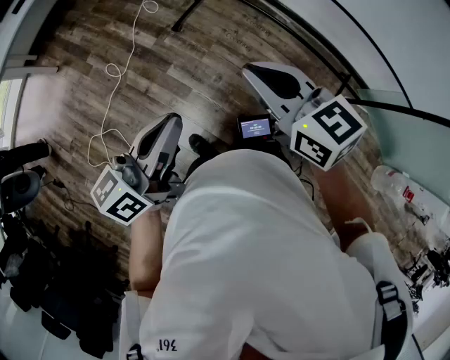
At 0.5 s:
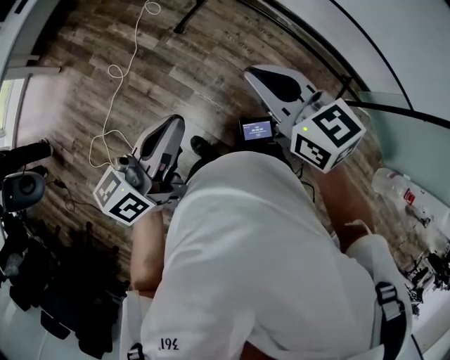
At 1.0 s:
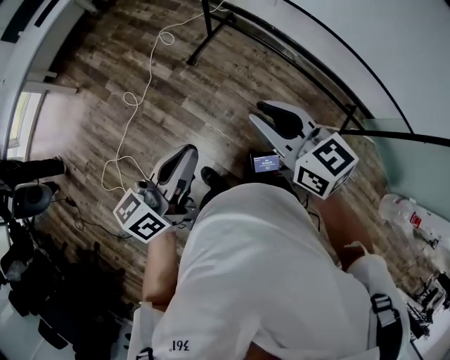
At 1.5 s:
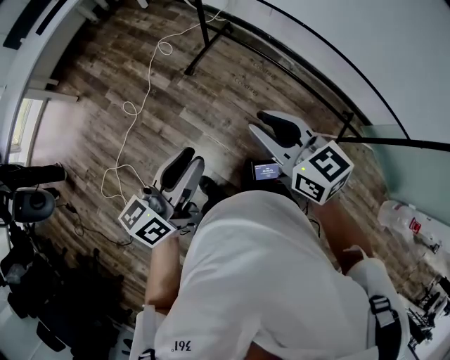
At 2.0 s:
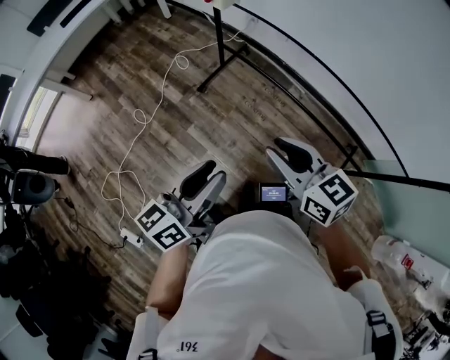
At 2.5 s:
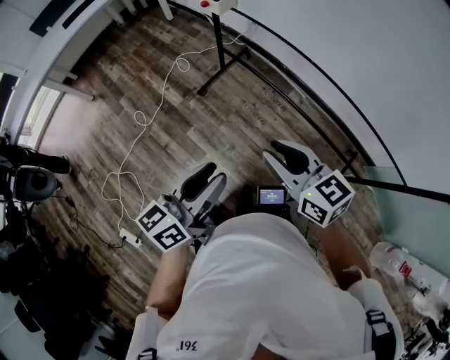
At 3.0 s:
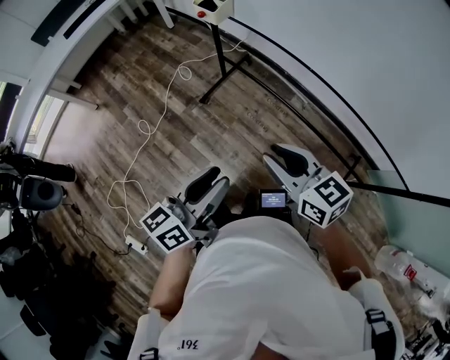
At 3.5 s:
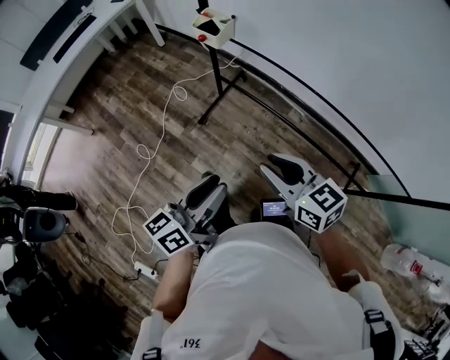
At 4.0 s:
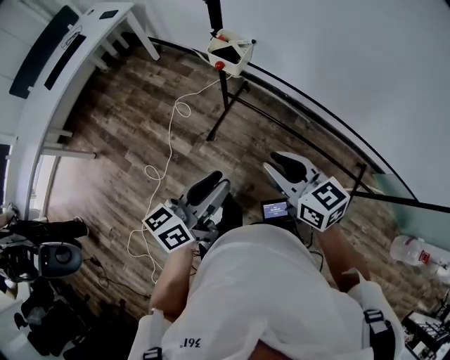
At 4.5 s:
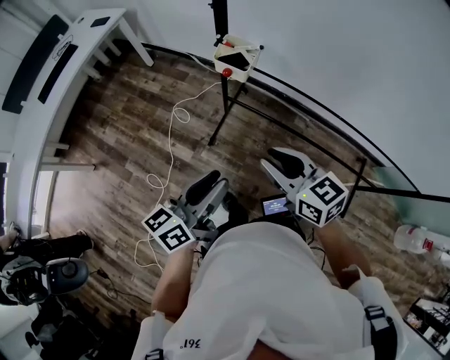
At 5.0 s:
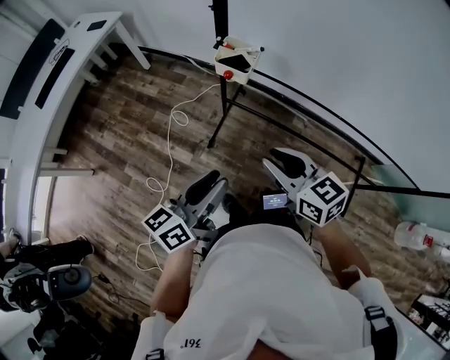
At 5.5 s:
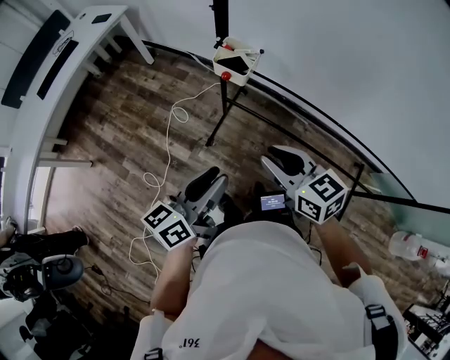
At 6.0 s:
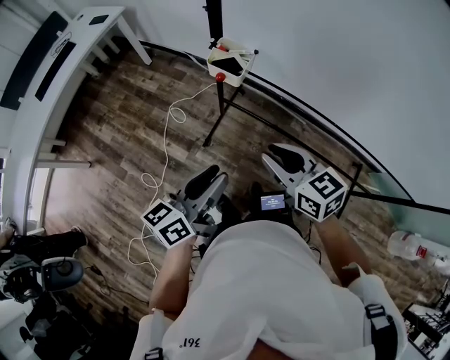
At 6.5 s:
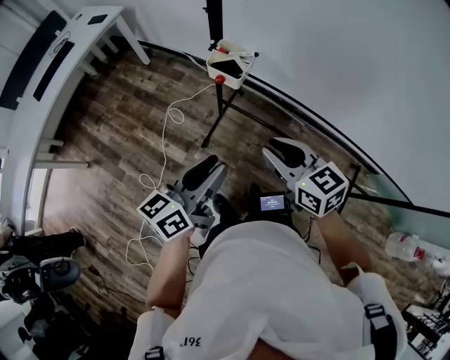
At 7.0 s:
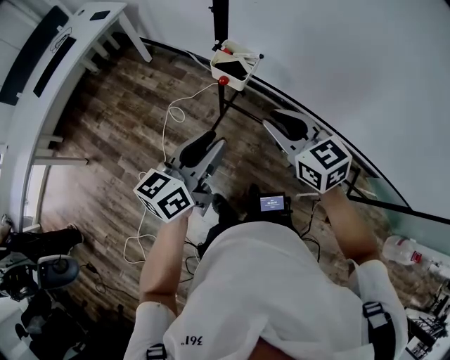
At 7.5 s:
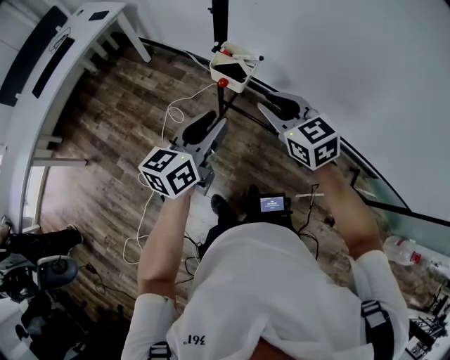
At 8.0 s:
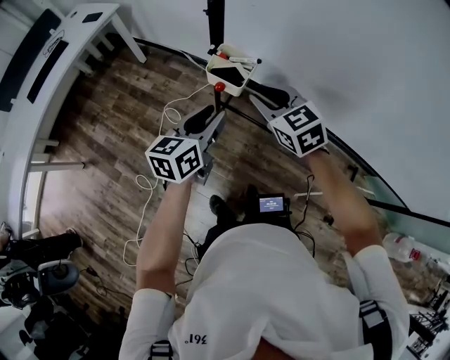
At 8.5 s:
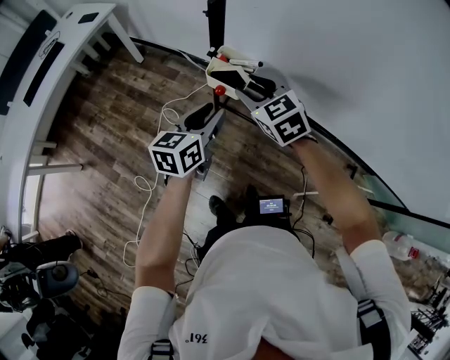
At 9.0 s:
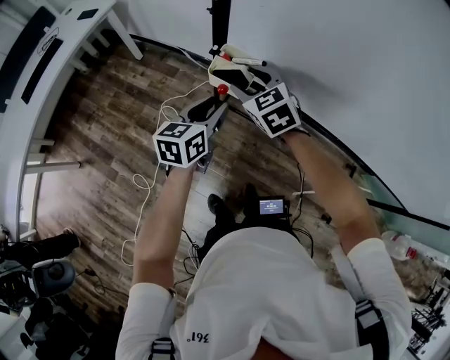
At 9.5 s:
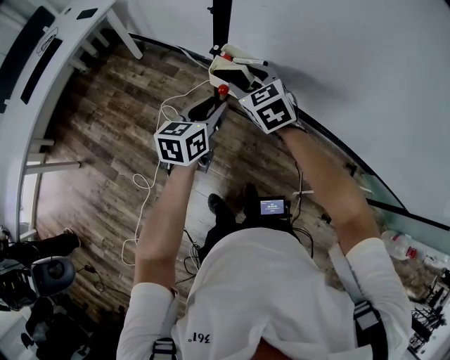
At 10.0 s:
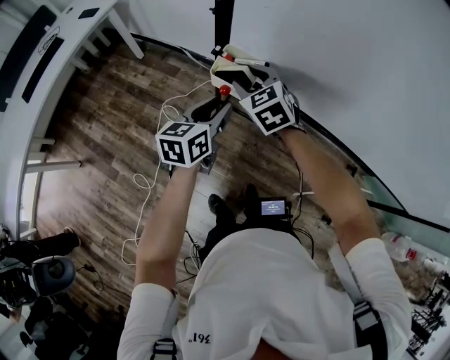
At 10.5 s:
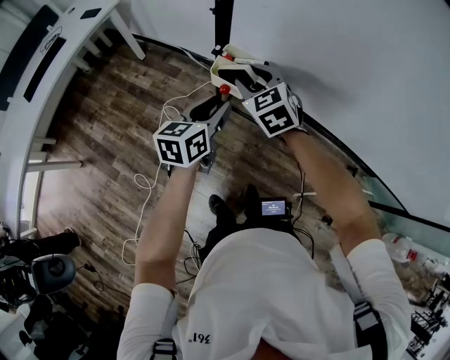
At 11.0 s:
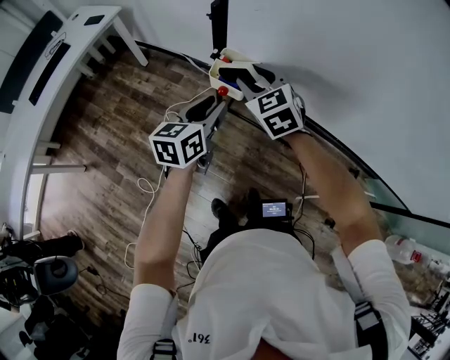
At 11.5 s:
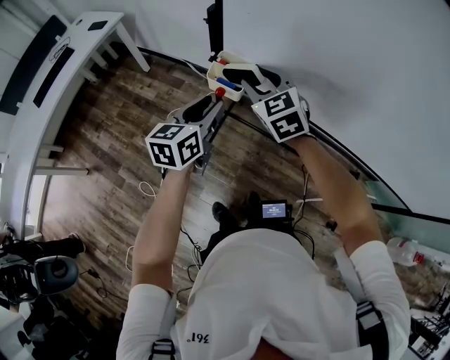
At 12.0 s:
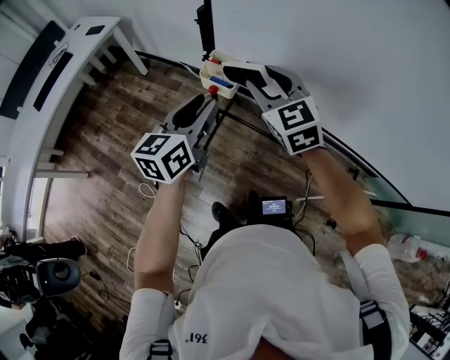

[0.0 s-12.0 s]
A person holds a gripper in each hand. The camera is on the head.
0.0 to 2.0 s: The grippers both shift to the right by approximately 10 cm. The left gripper opens.
2.0 to 4.0 s: The grippers both shift forward by approximately 25 cm.
4.0 to 6.0 s: The grippers both shift forward by approximately 5 cm.
6.0 to 8.0 s: The grippers both shift forward by some 20 cm. The right gripper swivels approximately 20 degrees.
8.0 to 10.0 s: The left gripper shifts by about 5 cm. Meanwhile the right gripper moves forward, roughly 5 cm, and opens.
10.0 to 12.0 s: The left gripper goes roughly 15 cm upward and backward, while the right gripper moves upward, backward and to the right, some 15 cm.

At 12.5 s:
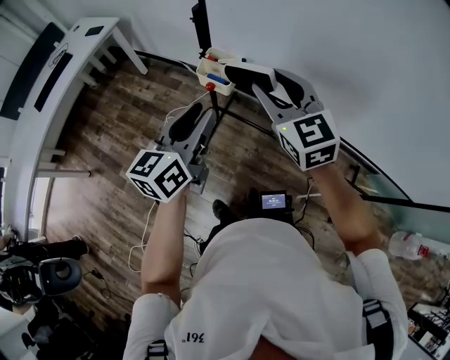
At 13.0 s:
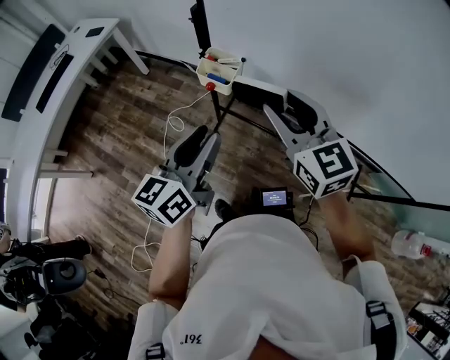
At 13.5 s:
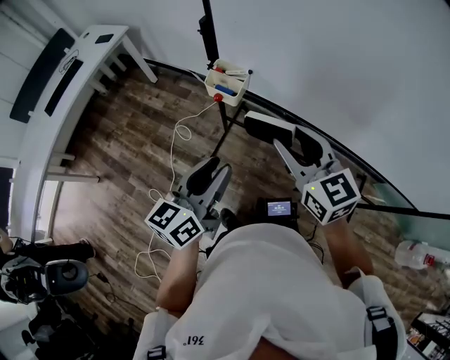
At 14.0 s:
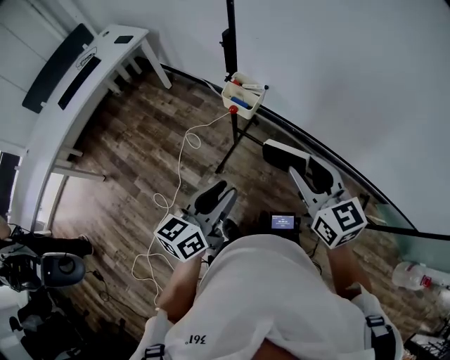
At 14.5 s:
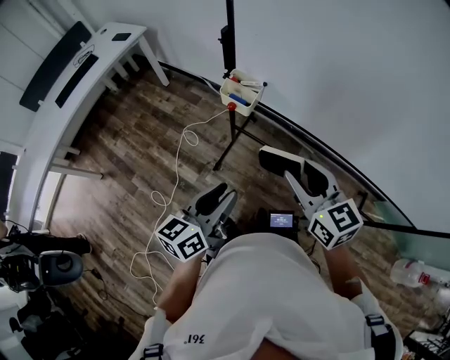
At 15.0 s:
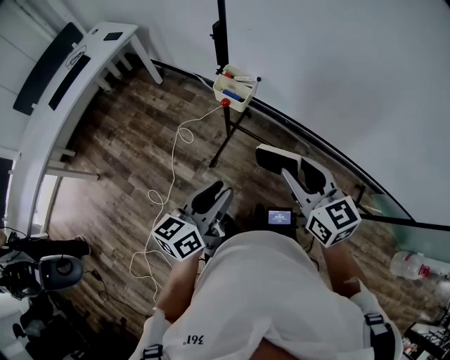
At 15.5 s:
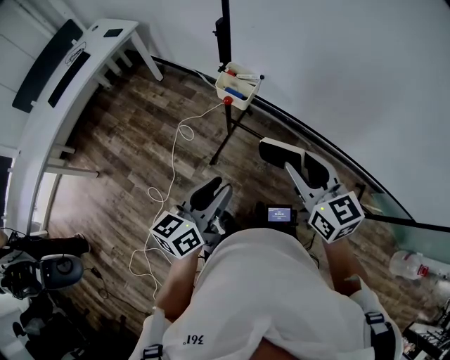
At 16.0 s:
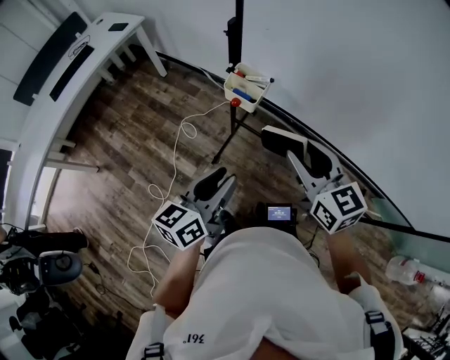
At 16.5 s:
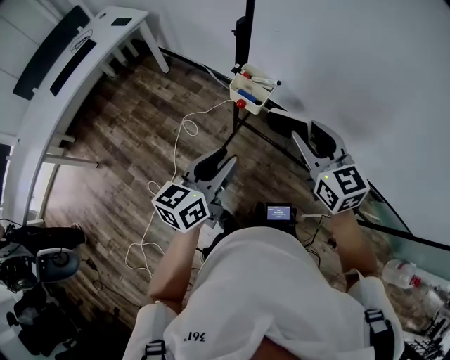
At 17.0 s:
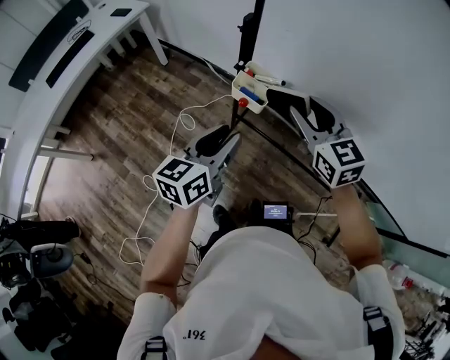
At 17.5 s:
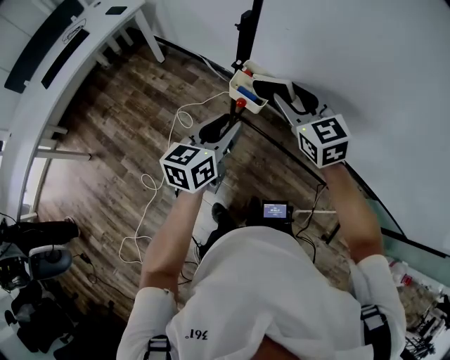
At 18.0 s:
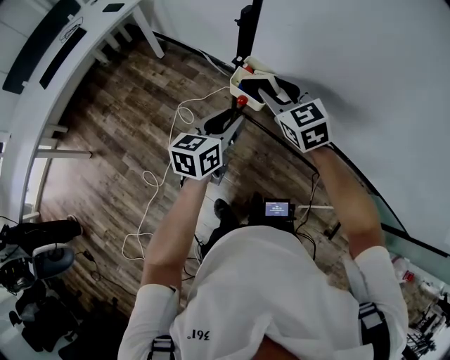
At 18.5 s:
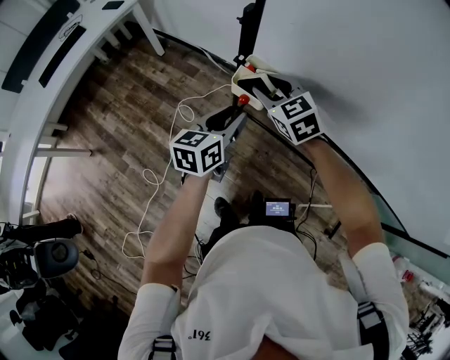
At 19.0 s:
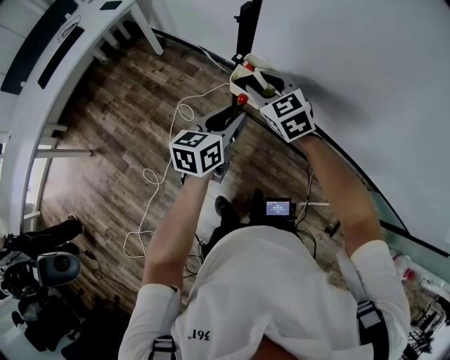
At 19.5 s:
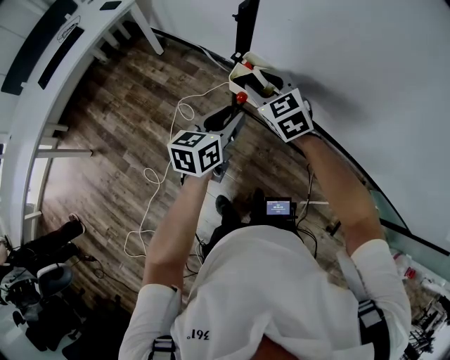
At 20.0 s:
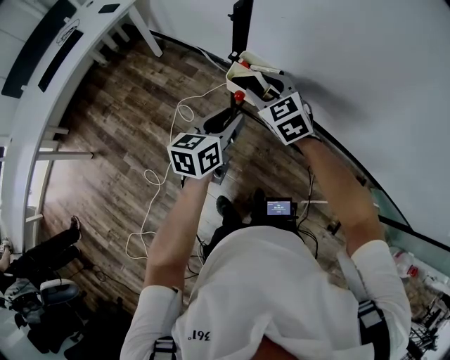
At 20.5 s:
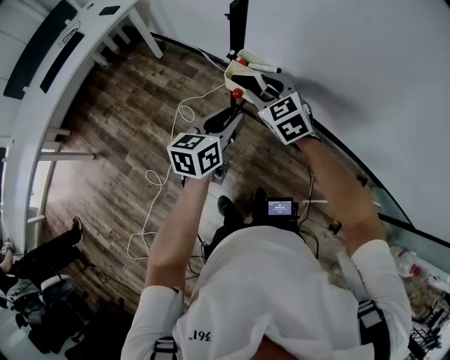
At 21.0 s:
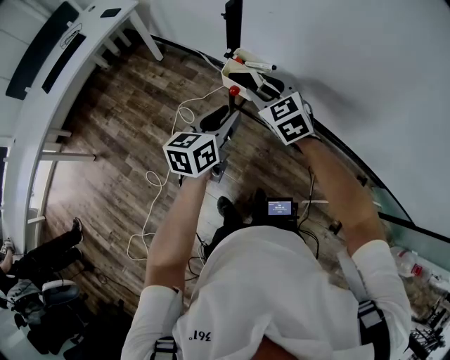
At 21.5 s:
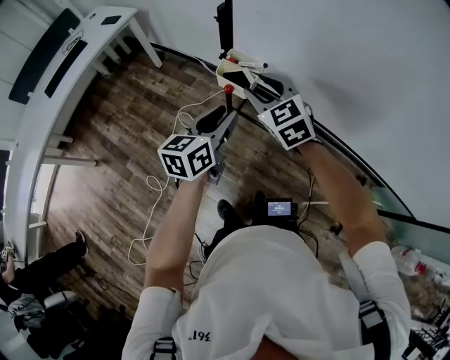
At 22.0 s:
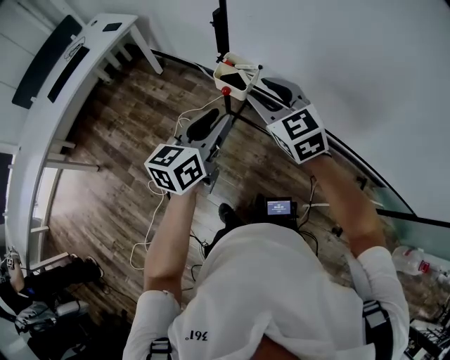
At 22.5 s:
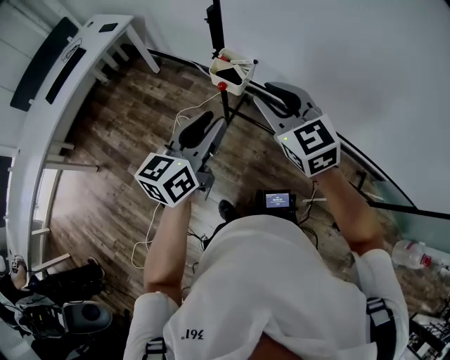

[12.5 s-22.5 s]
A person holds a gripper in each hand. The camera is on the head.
12.5 to 14.5 s: The left gripper heads backward and downward, covering about 15 cm. Meanwhile the right gripper travels backward by some 15 cm, and turns by about 20 degrees.
14.5 to 16.5 s: The grippers both shift forward by about 10 cm.
16.5 to 18.5 s: The right gripper goes some 20 cm forward, to the left and downward, and rotates about 20 degrees, while the left gripper travels forward and downward by approximately 15 cm.
18.5 to 20.5 s: The grippers stay close to where they were, moving slightly.
20.5 to 22.5 s: Both grippers move upward and backward, roughly 20 cm.

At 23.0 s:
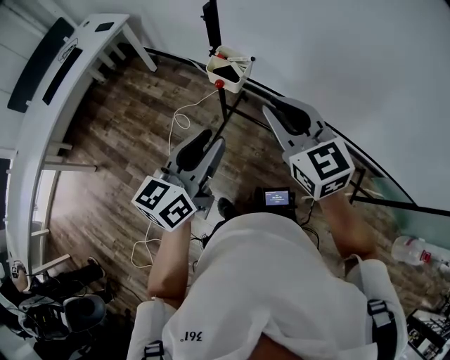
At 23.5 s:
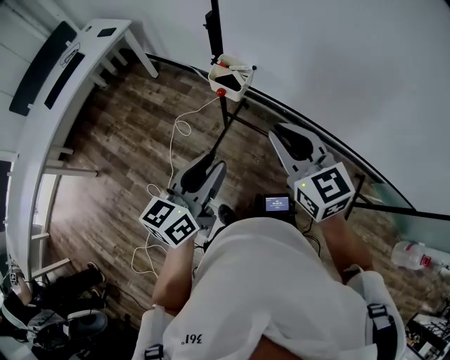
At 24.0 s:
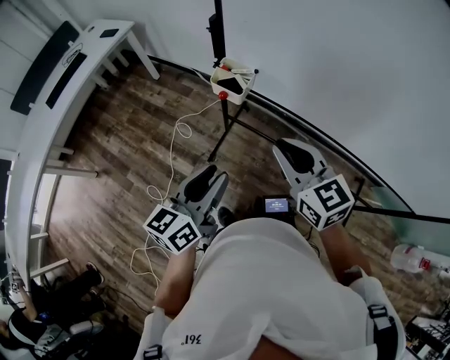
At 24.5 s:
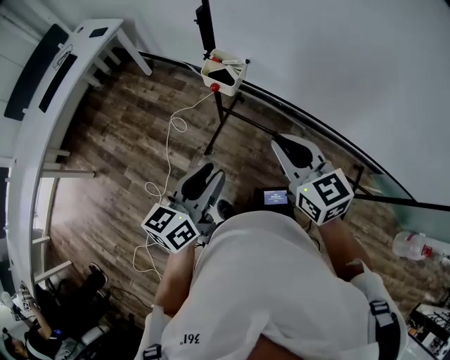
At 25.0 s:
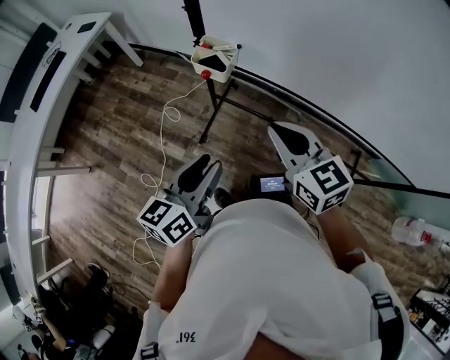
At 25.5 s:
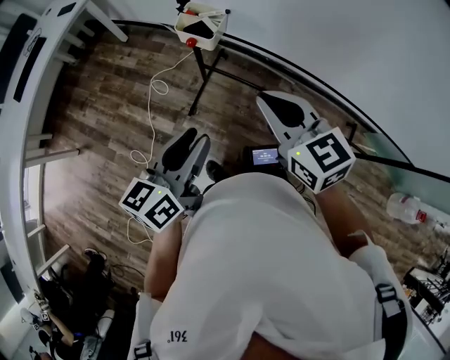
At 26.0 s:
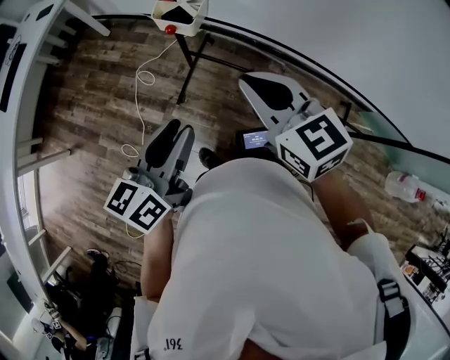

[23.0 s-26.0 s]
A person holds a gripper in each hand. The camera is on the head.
23.0 to 24.5 s: The right gripper is displaced backward and downward by roughly 5 cm. Meanwhile the left gripper shifts about 10 cm downward and backward.
24.5 to 26.0 s: The grippers move only a little.

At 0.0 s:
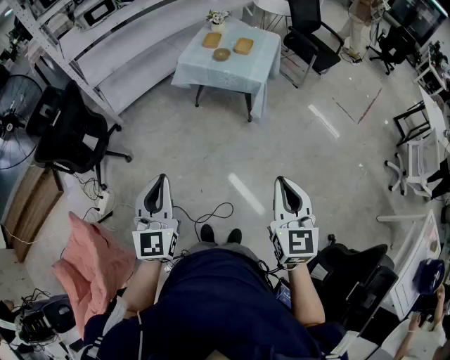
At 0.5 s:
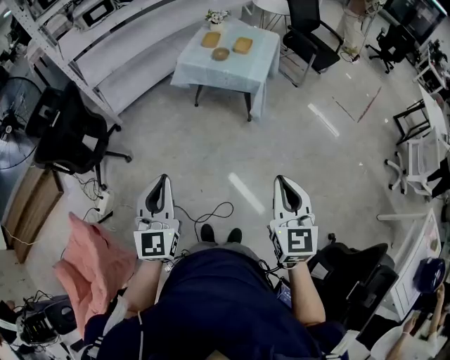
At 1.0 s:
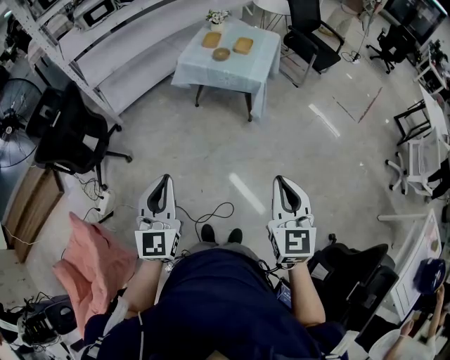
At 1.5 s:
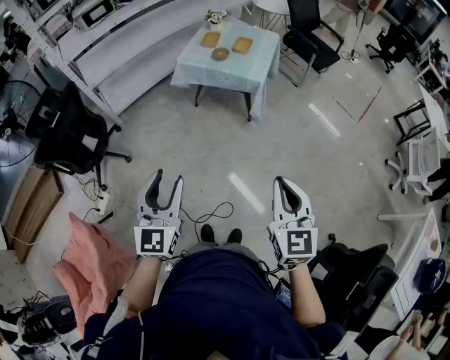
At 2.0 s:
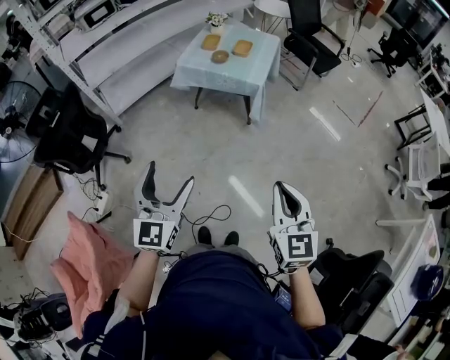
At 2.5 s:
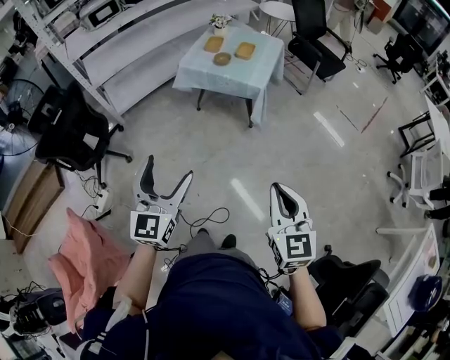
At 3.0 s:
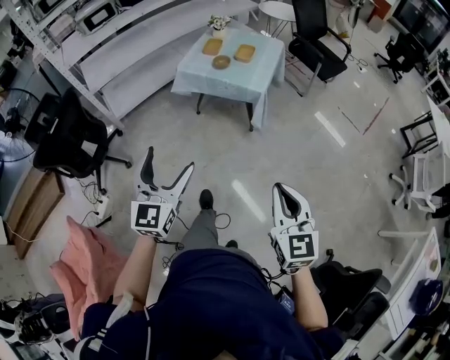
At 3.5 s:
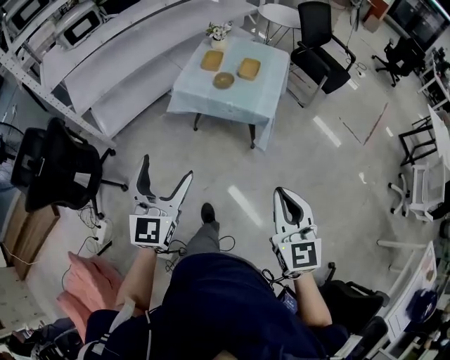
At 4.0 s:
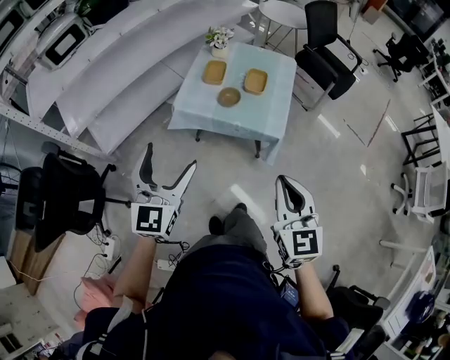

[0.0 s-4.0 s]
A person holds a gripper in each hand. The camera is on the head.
0.0 to 2.0 s: The left gripper heads to the right, covering roughly 5 cm, and opens up.
2.0 to 4.0 s: The pair of grippers is taken forward, roughly 50 cm.
